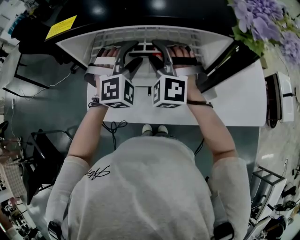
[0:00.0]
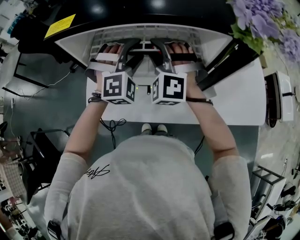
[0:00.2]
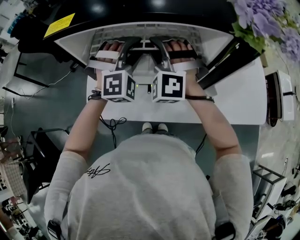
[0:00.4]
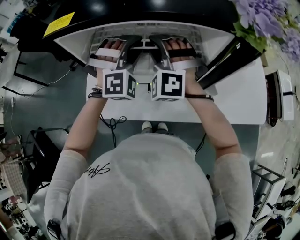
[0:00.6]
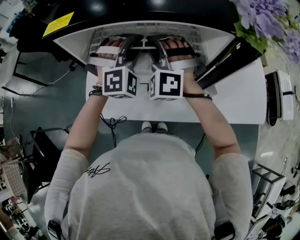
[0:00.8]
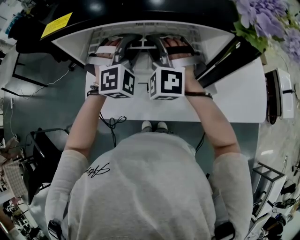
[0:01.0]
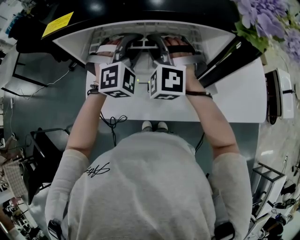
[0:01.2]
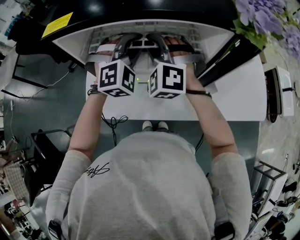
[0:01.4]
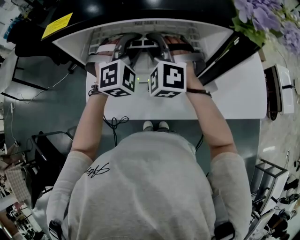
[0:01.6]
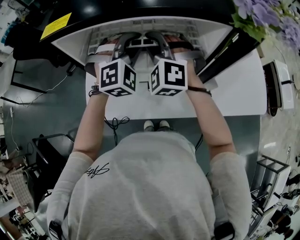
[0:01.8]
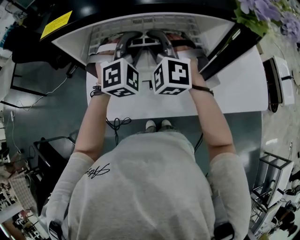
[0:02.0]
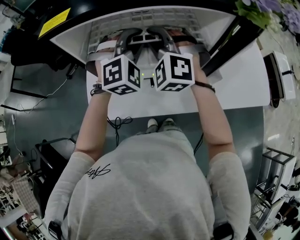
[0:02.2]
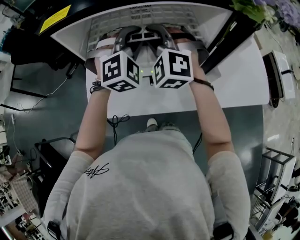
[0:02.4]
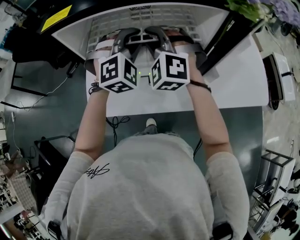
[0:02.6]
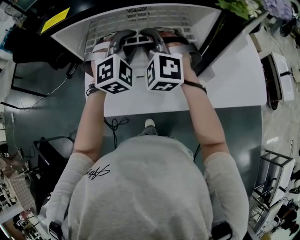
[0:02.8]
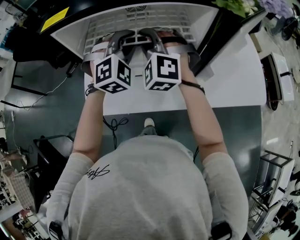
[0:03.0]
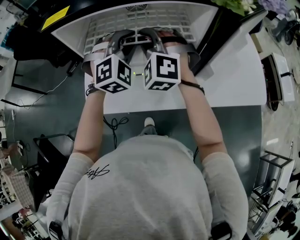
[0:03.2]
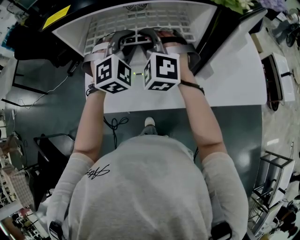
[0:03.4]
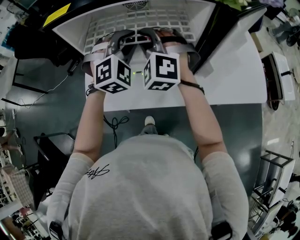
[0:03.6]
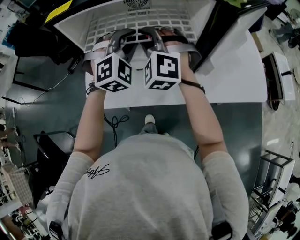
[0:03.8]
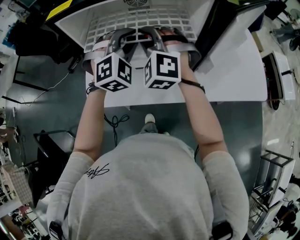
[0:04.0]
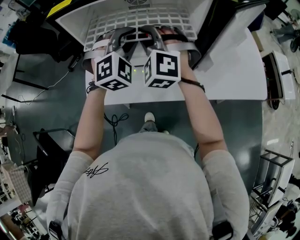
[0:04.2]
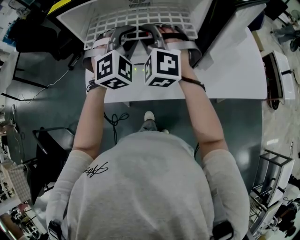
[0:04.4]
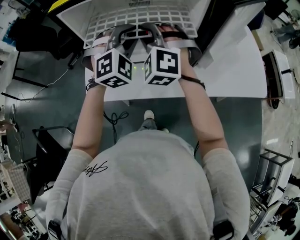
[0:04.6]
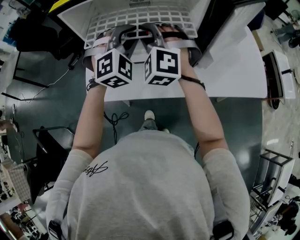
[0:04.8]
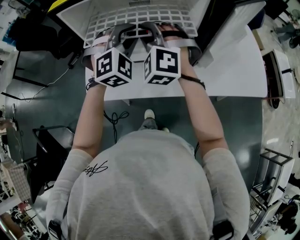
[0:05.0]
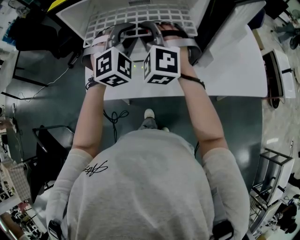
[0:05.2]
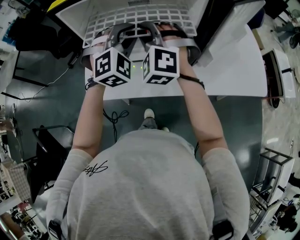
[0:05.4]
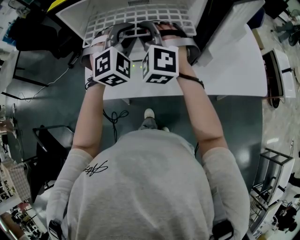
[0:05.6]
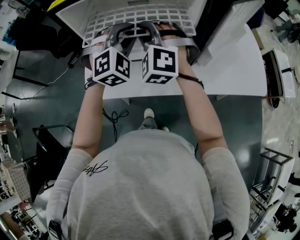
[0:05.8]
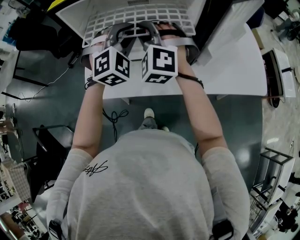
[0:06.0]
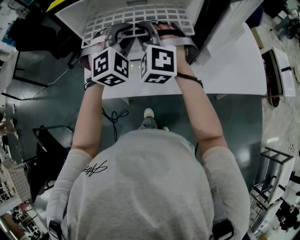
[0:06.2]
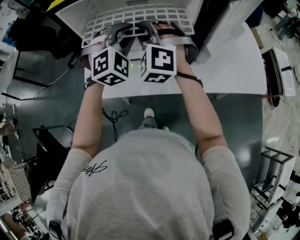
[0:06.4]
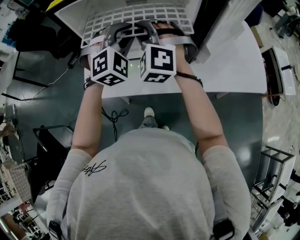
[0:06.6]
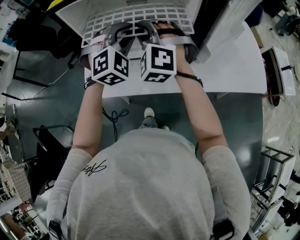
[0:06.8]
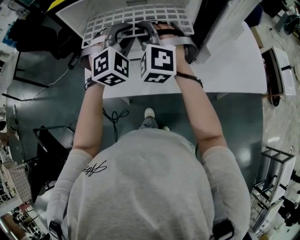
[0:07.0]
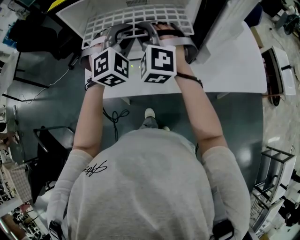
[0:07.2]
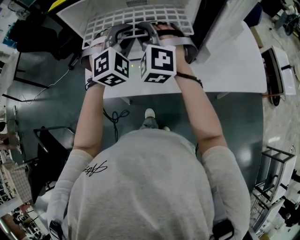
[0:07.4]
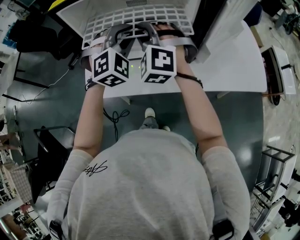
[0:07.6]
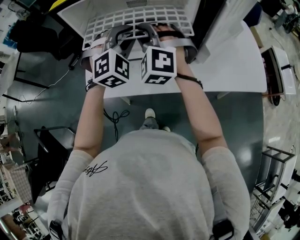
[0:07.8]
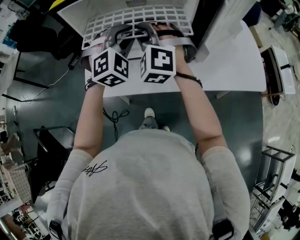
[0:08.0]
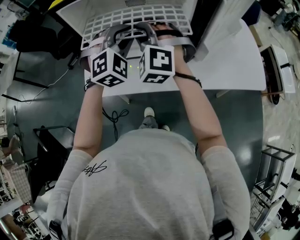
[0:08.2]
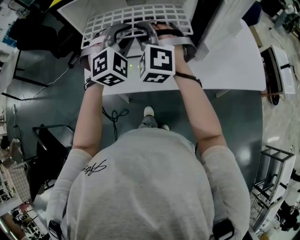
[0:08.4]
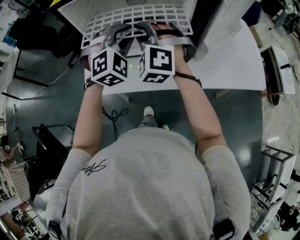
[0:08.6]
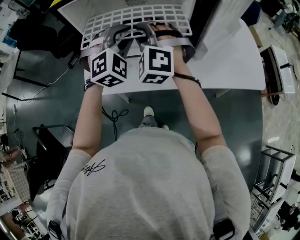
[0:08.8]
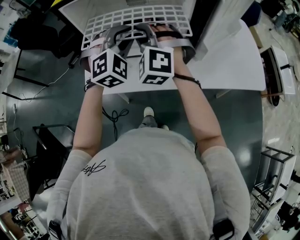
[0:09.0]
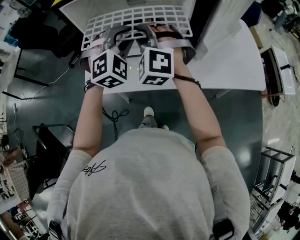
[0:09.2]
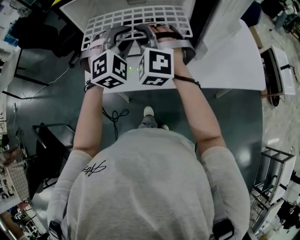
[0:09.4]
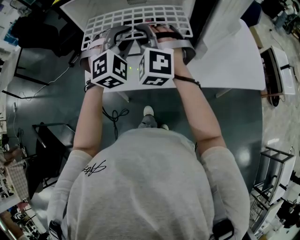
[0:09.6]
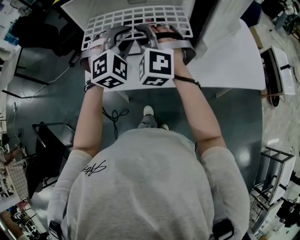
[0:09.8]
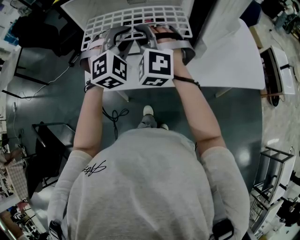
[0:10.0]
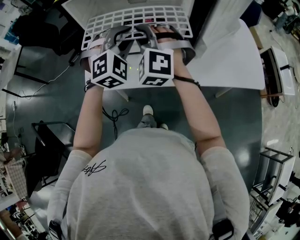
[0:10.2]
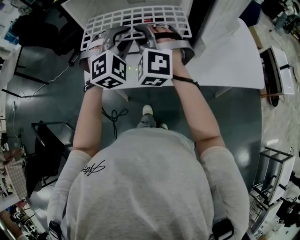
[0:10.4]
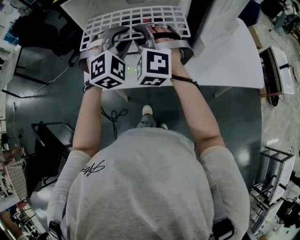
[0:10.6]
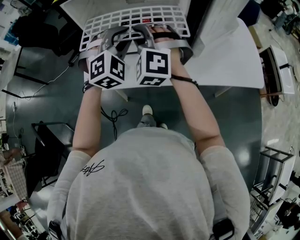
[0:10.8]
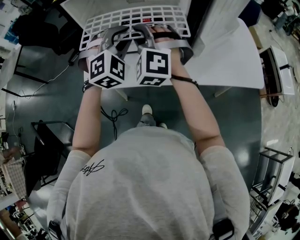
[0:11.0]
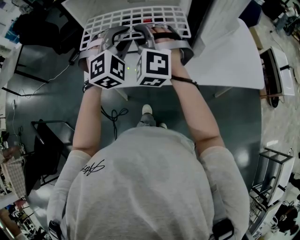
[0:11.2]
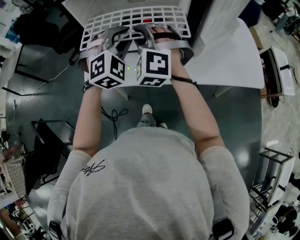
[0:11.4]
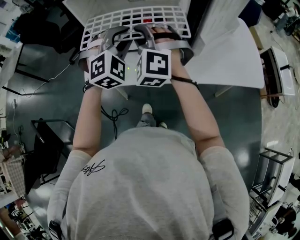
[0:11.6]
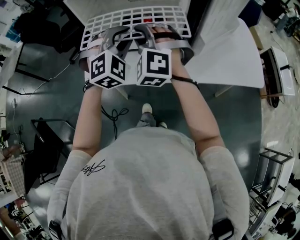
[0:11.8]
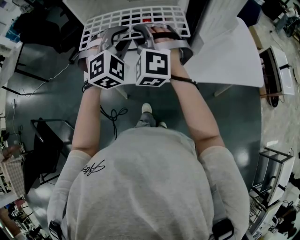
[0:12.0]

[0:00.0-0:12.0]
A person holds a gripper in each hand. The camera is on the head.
0:00.0 to 0:01.6: The left gripper closes up, while the right gripper closes its fingers.
0:01.6 to 0:03.0: The grippers move only a little.
0:03.0 to 0:04.4: The grippers make only small movements.
0:04.4 to 0:06.0: Neither gripper changes place.
0:06.0 to 0:07.6: Both grippers stay put.
0:07.6 to 0:09.0: The grippers make only small movements.
0:09.0 to 0:10.4: Neither gripper changes place.
0:10.4 to 0:12.0: There are only small adjustments of the grippers.

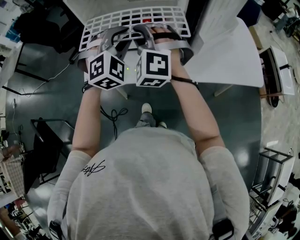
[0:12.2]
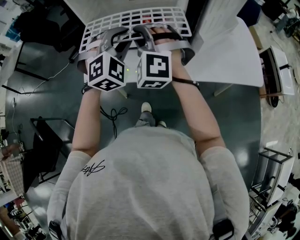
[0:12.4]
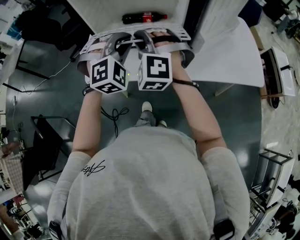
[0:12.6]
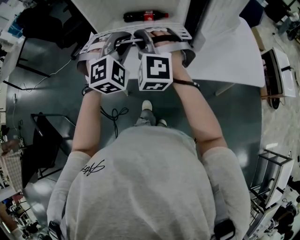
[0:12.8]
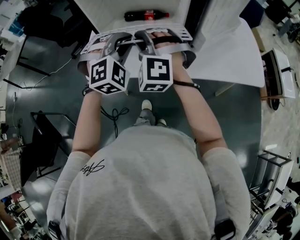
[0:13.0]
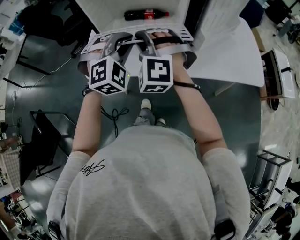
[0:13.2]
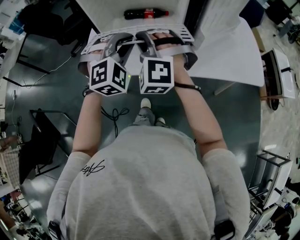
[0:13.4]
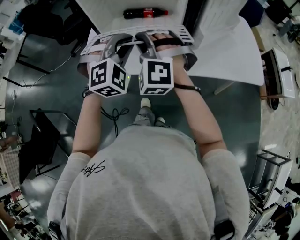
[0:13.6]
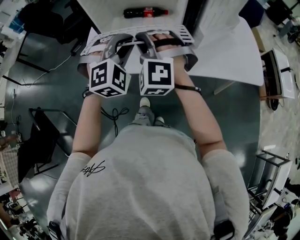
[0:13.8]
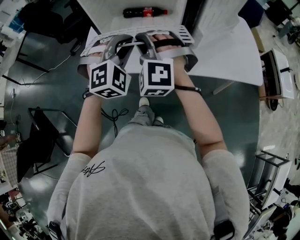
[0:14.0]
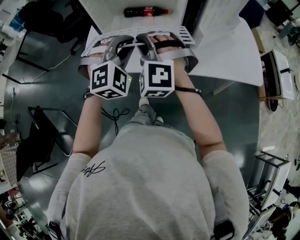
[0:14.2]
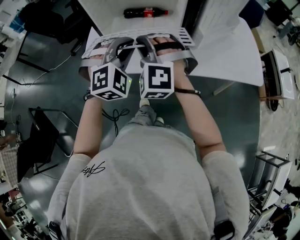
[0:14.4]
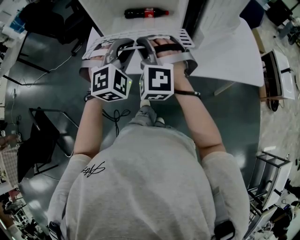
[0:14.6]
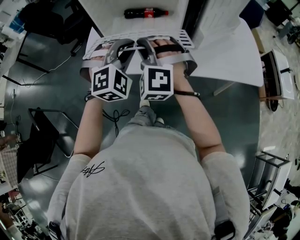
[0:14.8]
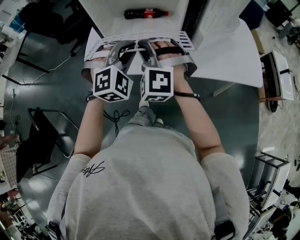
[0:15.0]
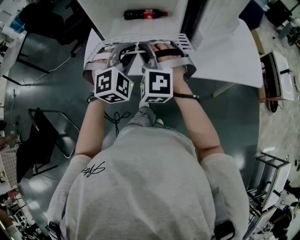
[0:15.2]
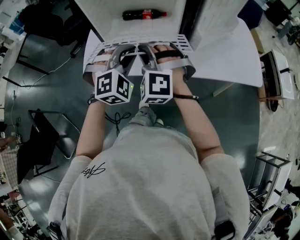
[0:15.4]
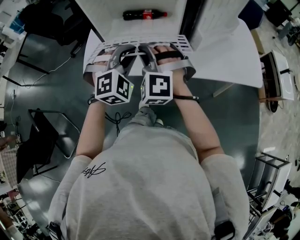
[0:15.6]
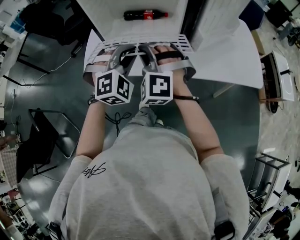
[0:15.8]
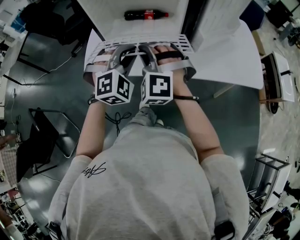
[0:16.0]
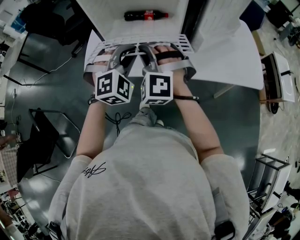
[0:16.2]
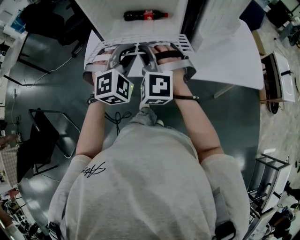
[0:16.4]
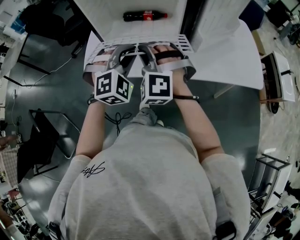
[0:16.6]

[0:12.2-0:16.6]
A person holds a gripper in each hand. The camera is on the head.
0:12.2 to 0:13.6: The two grippers go some 5 cm backward.
0:13.6 to 0:15.2: The grippers stay close to where they were, moving slightly.
0:15.2 to 0:16.6: The two grippers keep their place.

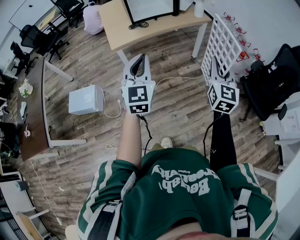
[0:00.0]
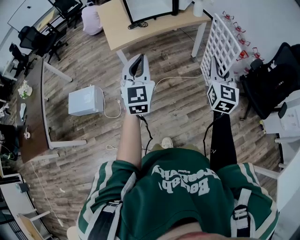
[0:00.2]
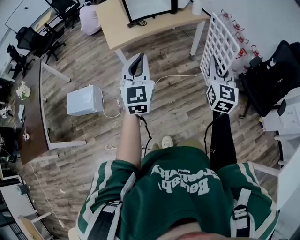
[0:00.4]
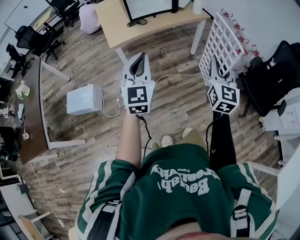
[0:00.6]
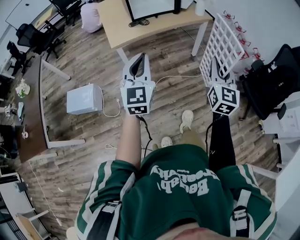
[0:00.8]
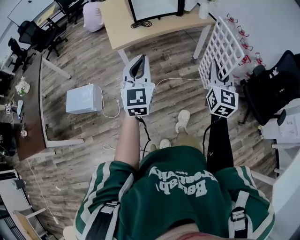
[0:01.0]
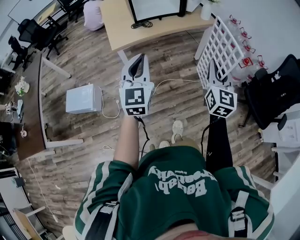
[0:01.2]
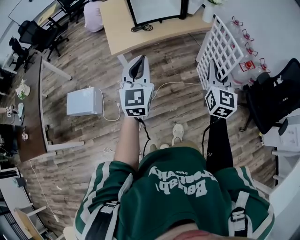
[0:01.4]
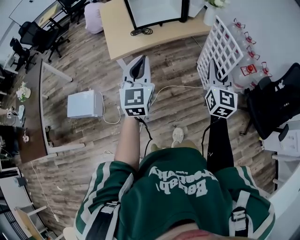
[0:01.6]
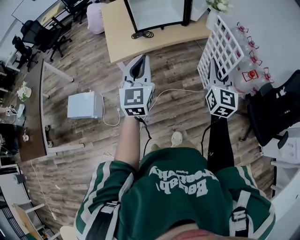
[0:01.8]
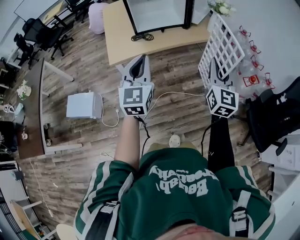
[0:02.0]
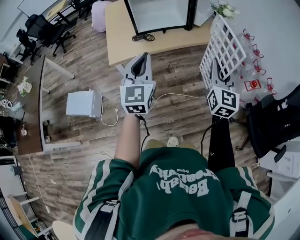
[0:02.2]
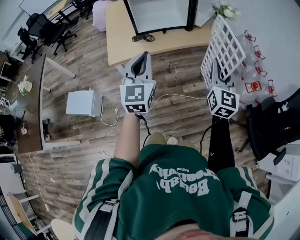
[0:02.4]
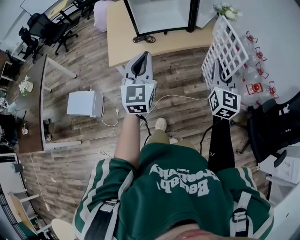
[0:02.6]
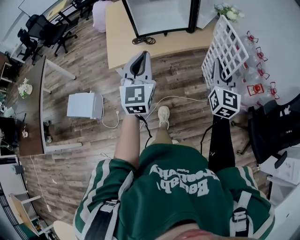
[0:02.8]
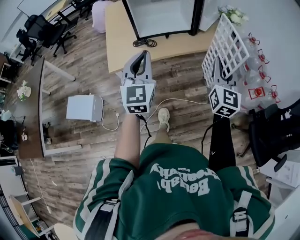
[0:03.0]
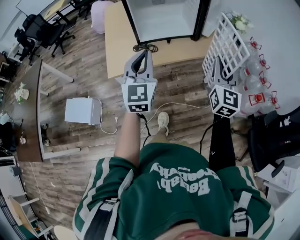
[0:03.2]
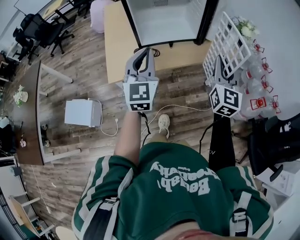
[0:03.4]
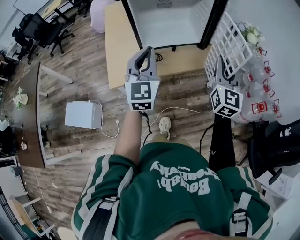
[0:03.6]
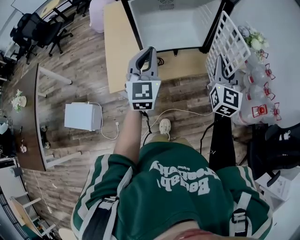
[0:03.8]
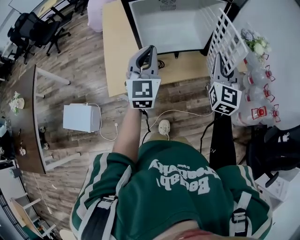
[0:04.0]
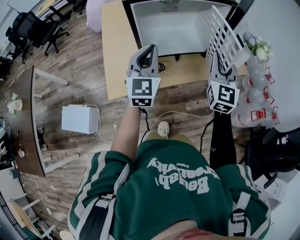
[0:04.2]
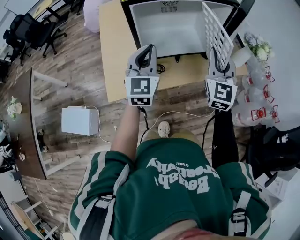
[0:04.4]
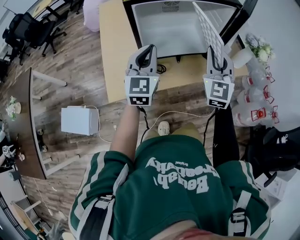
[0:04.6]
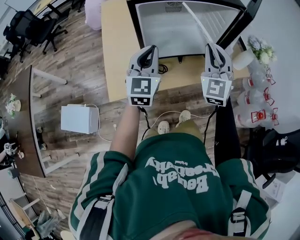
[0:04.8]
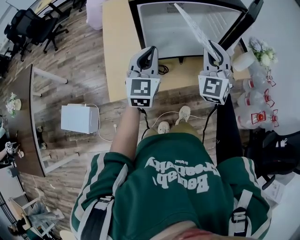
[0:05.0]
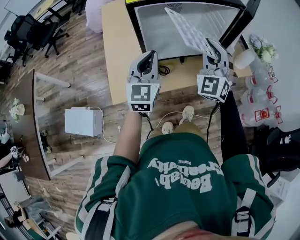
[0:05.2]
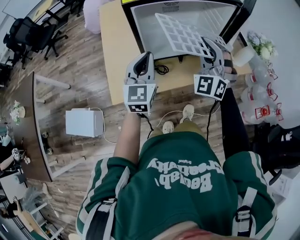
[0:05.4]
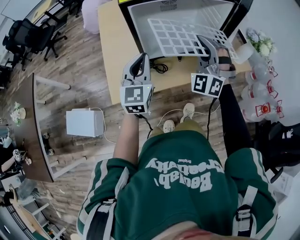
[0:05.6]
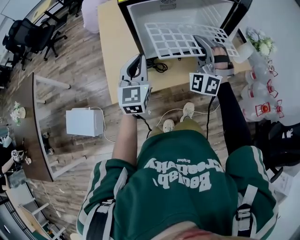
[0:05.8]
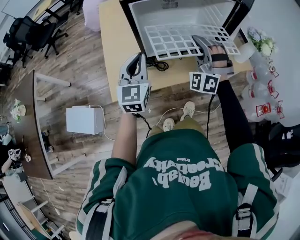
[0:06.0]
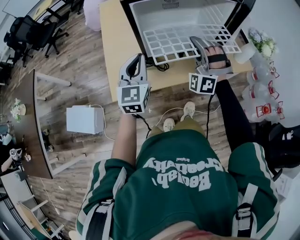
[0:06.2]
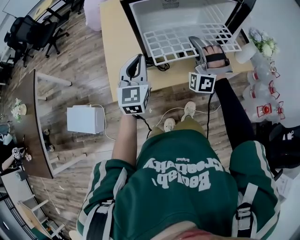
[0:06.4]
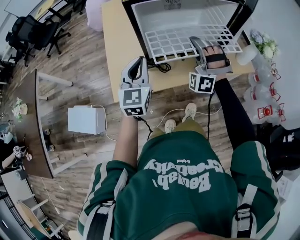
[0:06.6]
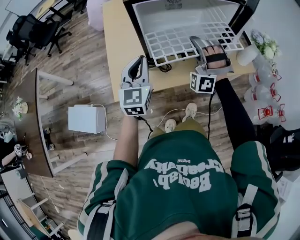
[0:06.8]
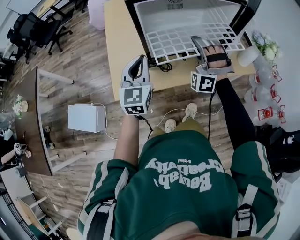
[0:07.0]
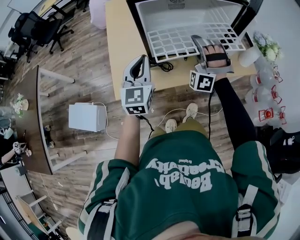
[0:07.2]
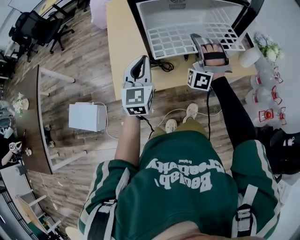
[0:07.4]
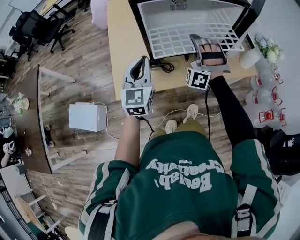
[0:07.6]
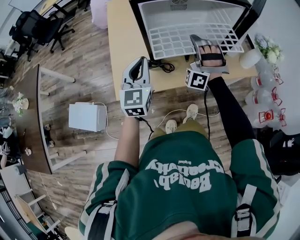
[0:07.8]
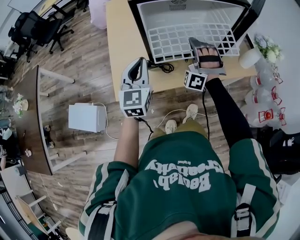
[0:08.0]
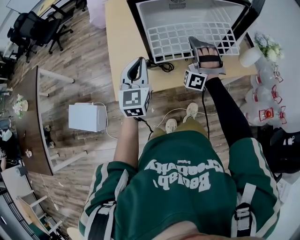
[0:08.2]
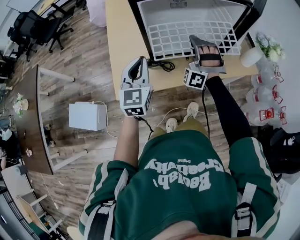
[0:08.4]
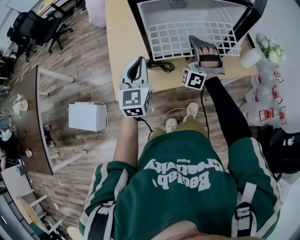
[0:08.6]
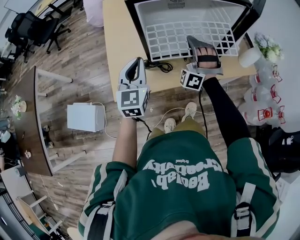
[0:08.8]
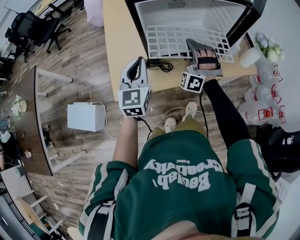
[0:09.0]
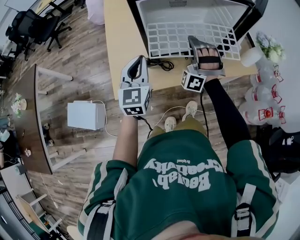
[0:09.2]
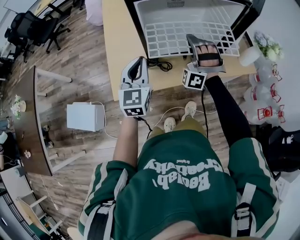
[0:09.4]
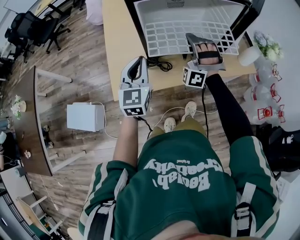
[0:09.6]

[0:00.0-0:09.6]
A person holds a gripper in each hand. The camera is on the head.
0:00.0 to 0:01.6: Both grippers travel together forward, approximately 15 cm.
0:01.6 to 0:03.2: Both grippers move forward, about 25 cm.
0:03.2 to 0:04.8: The right gripper shifts about 30 cm forward and to the left, and changes its angle by roughly 30 degrees. Meanwhile the left gripper heads forward, covering roughly 25 cm.
0:04.8 to 0:06.4: The left gripper changes place by about 5 cm; the right gripper heads downward and to the left, covering roughly 10 cm, and rotates around the line of its fingers by some 50 degrees, counterclockwise from behind.
0:06.4 to 0:08.0: The right gripper moves about 5 cm.
0:08.0 to 0:09.6: There are only small adjustments of the grippers.
